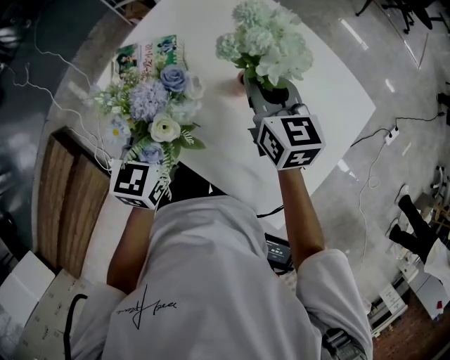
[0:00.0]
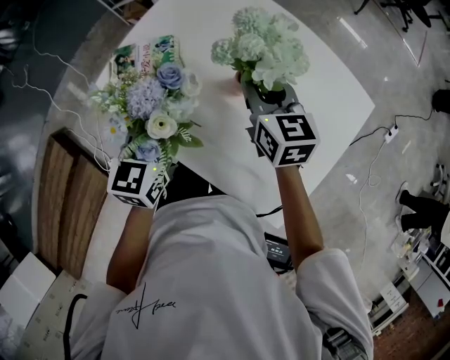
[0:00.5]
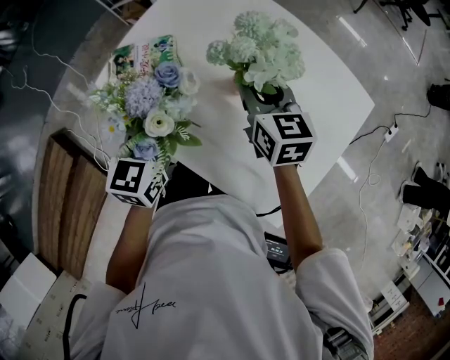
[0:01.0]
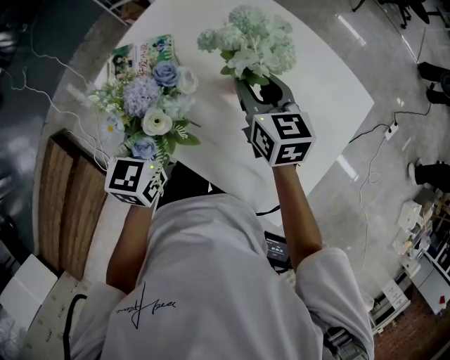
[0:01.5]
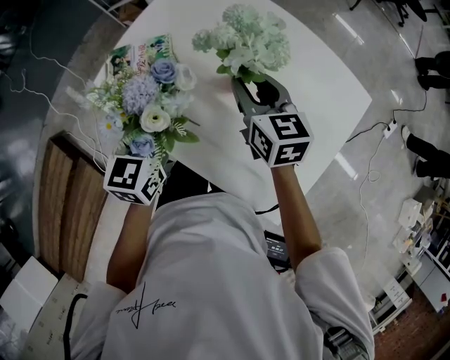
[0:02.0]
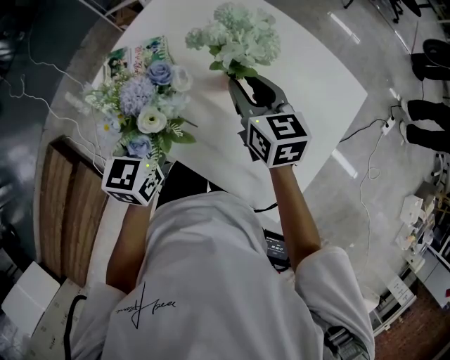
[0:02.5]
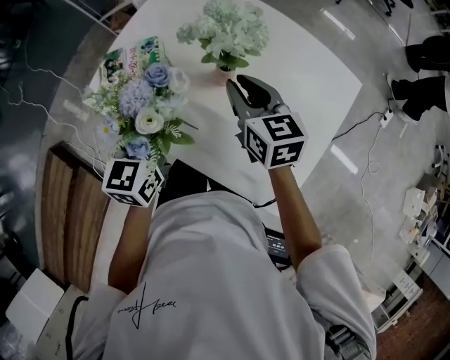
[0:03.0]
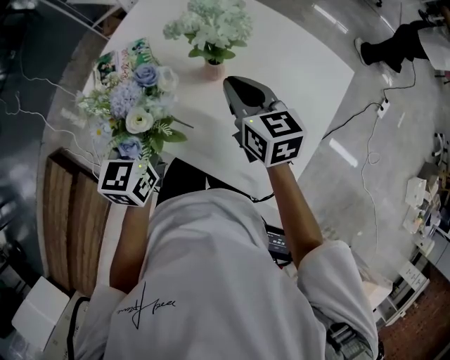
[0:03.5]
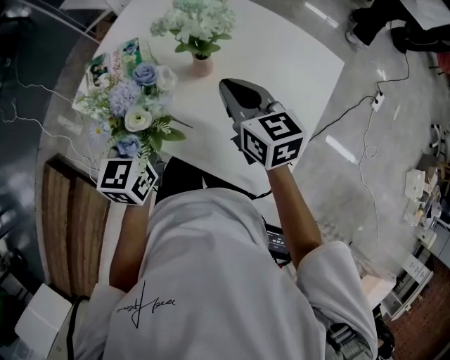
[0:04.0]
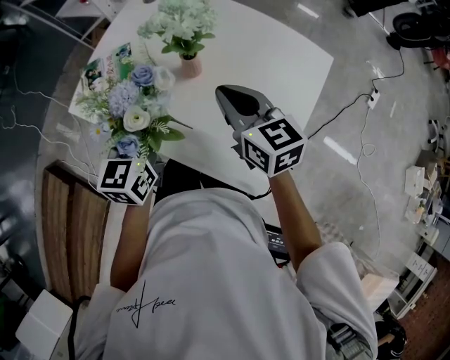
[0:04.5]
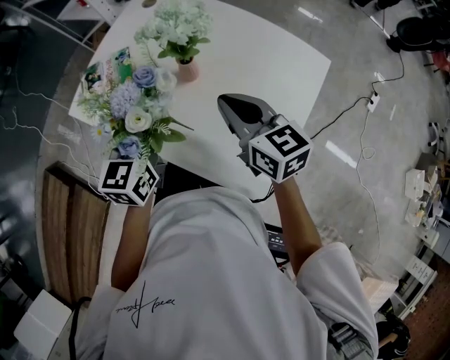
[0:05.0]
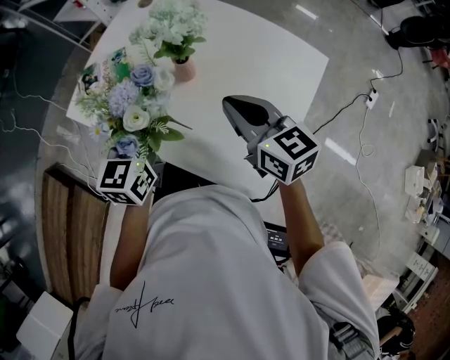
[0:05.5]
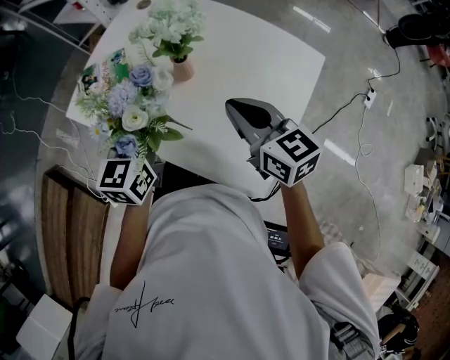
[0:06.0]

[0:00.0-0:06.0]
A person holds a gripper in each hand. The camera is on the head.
0:00.0 to 0:02.0: The grippers stay close to where they were, moving slightly.
0:02.0 to 0:04.0: The right gripper goes roughly 10 cm backward, and closes its fingers, while the left gripper heads backward, covering roughly 5 cm.
0:04.0 to 0:06.0: The right gripper moves backward, approximately 5 cm.

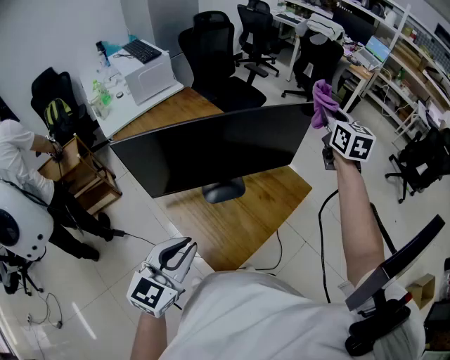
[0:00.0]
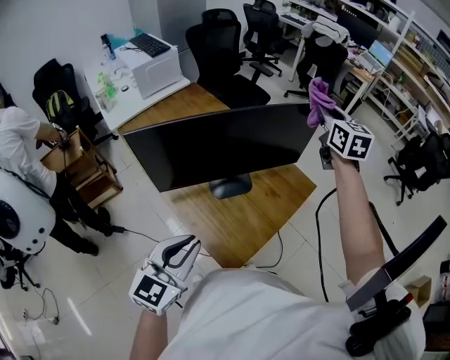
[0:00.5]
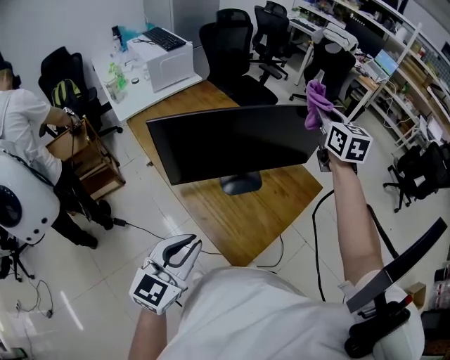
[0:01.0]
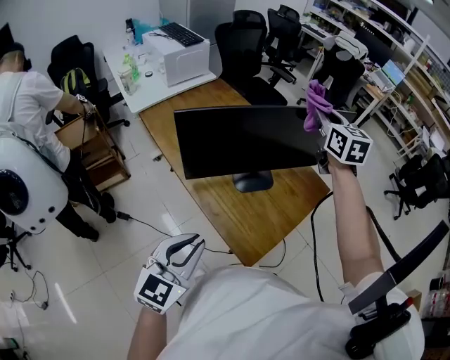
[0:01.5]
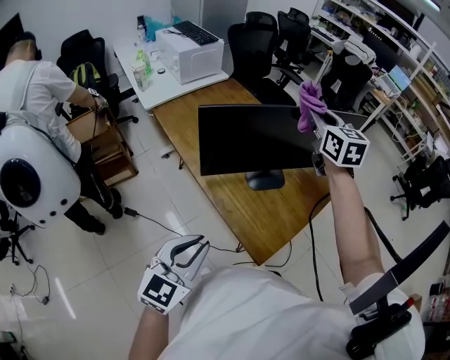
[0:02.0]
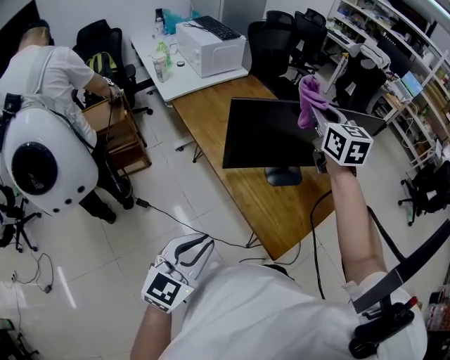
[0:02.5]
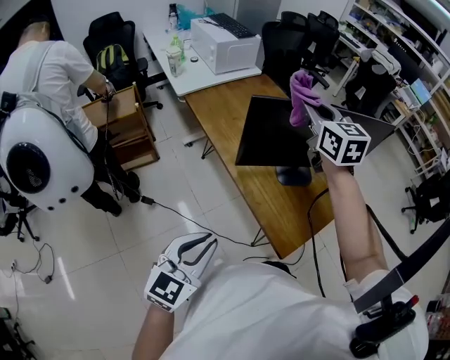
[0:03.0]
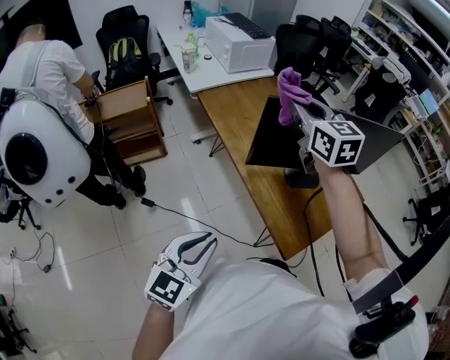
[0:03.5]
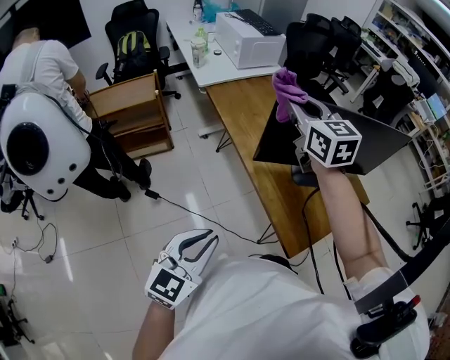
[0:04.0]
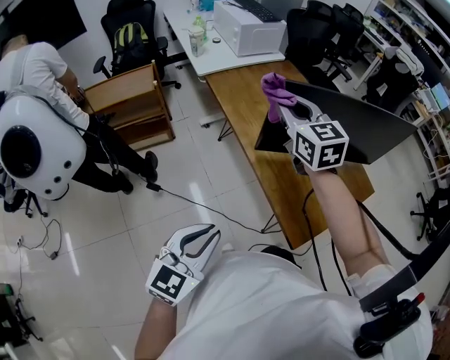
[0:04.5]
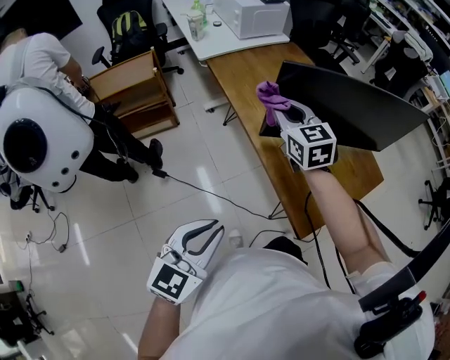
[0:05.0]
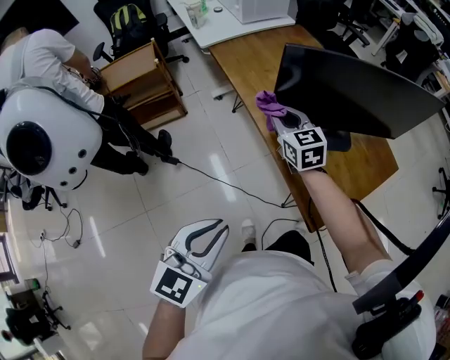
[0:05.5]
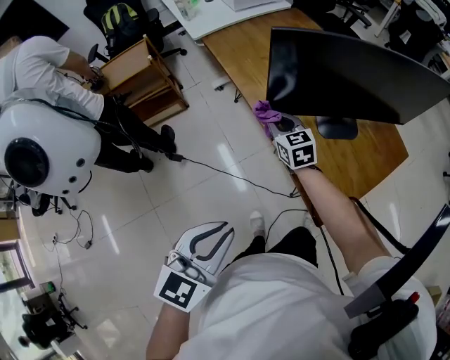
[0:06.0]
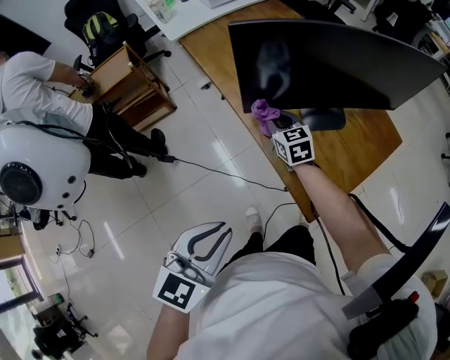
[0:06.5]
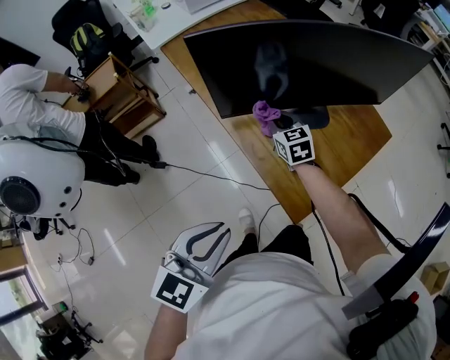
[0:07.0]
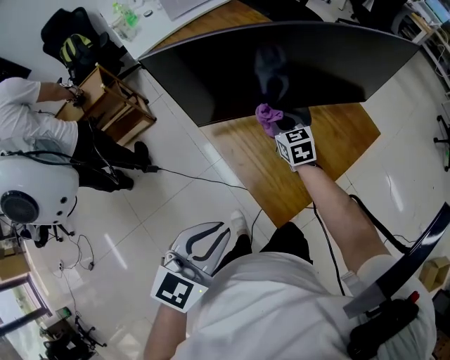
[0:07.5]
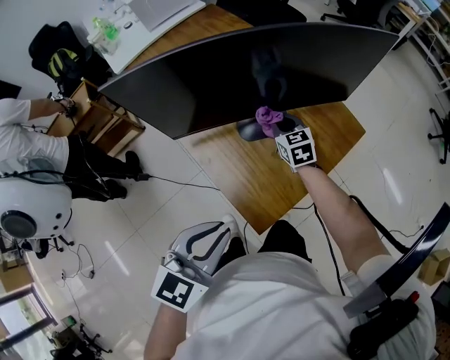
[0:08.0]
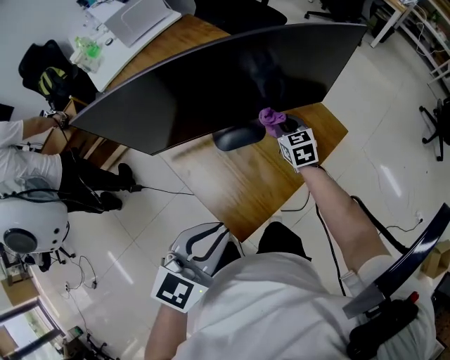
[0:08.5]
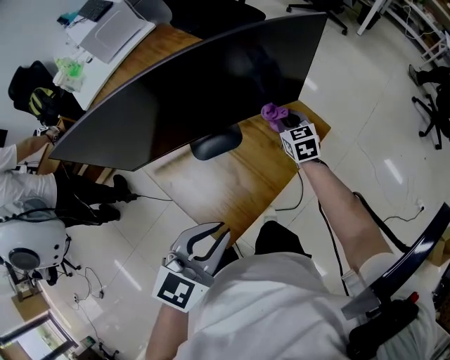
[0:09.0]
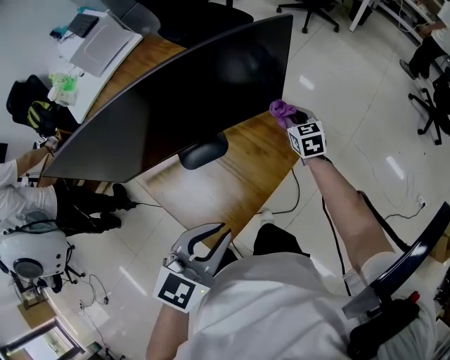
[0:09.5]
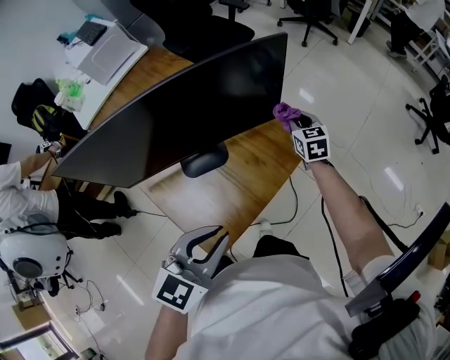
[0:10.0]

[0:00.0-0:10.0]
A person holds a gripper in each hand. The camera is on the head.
0:00.0 to 0:02.0: The left gripper goes some 15 cm to the left and backward, while the right gripper heads to the left and backward, covering about 30 cm.
0:02.0 to 0:04.0: The left gripper travels to the left and backward by about 10 cm. Meanwhile the right gripper shifts approximately 25 cm to the left, and swivels roughly 20 degrees.
0:04.0 to 0:06.0: The right gripper goes some 35 cm downward, and turns by about 20 degrees.
0:06.0 to 0:08.0: The right gripper shifts about 25 cm to the right, while the left gripper shifts some 20 cm to the right and forward.
0:08.0 to 0:10.0: The right gripper moves to the right and forward, some 30 cm, while the left gripper goes about 15 cm to the right and forward.

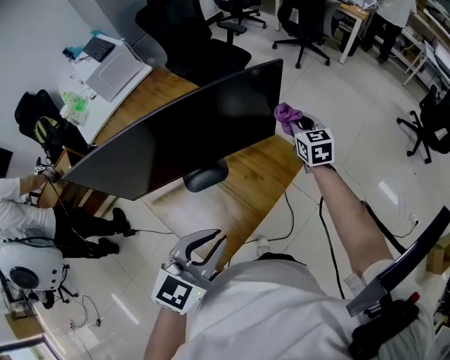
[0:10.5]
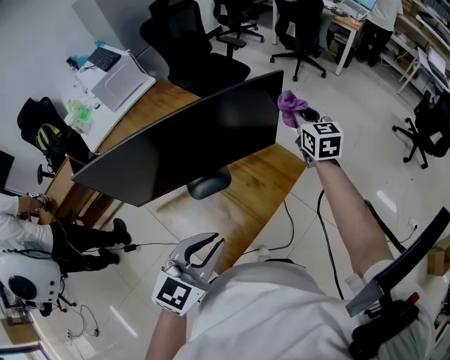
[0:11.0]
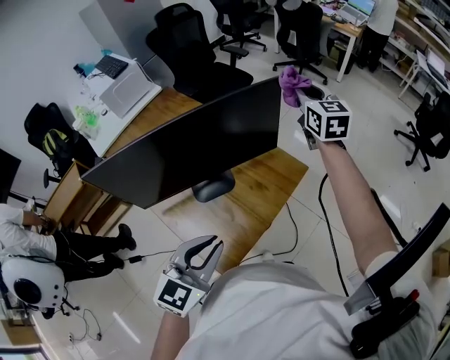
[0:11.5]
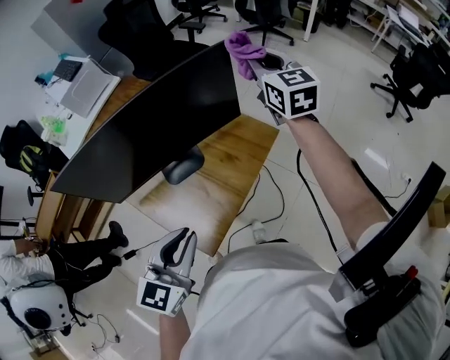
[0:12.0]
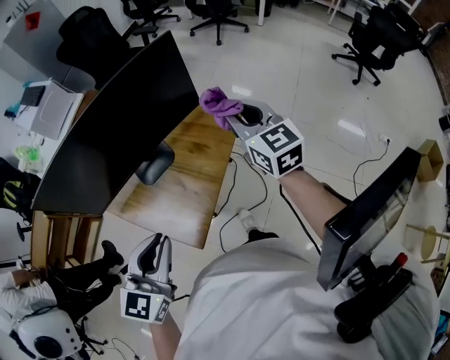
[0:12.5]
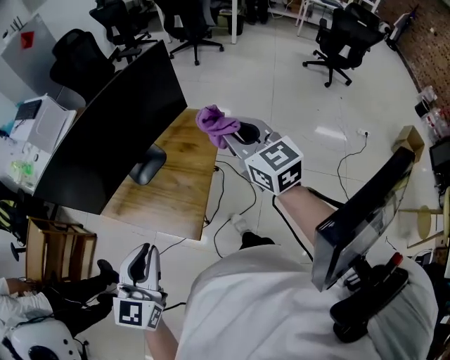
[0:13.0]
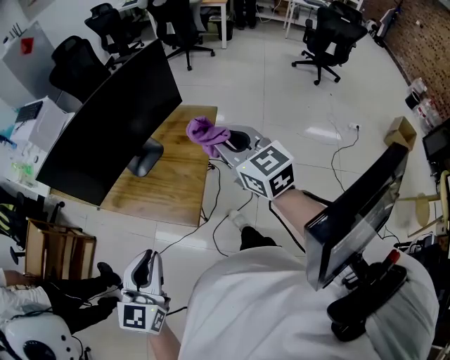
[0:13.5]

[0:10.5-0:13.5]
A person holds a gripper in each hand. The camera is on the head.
0:10.5 to 0:12.0: The right gripper travels upward by about 20 cm.
0:12.0 to 0:13.5: The left gripper shifts some 20 cm backward and to the left. The right gripper is displaced backward by approximately 35 cm.

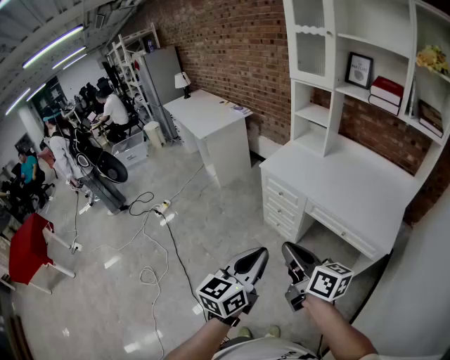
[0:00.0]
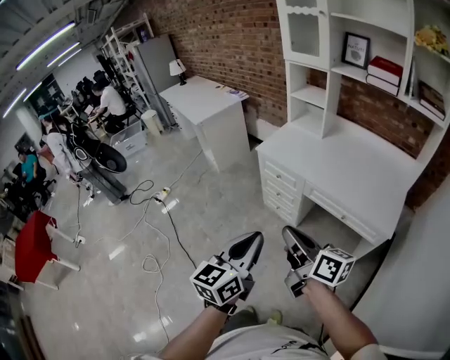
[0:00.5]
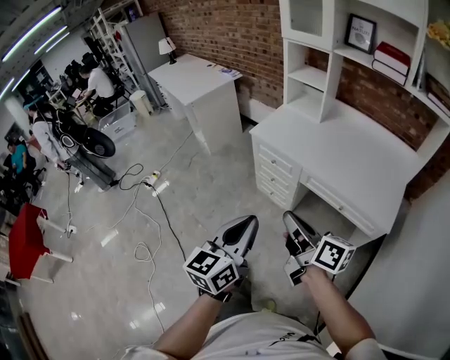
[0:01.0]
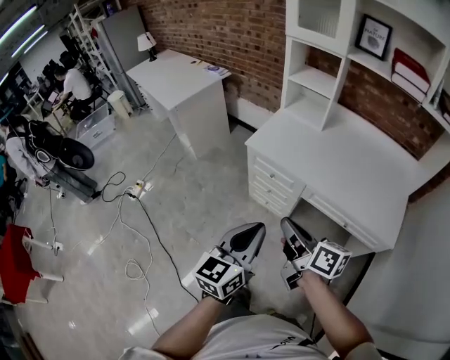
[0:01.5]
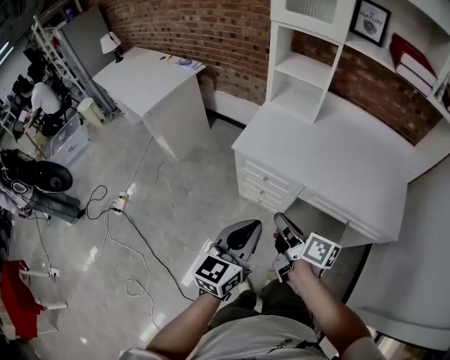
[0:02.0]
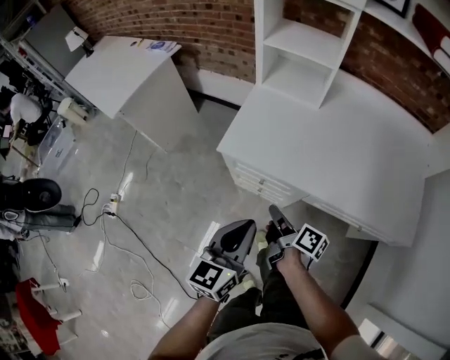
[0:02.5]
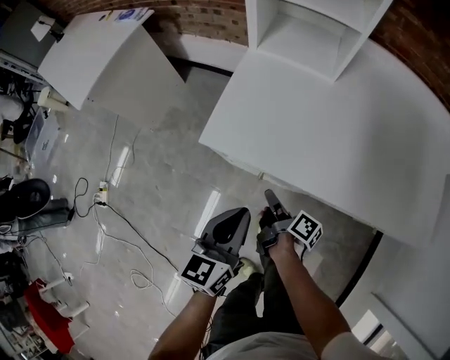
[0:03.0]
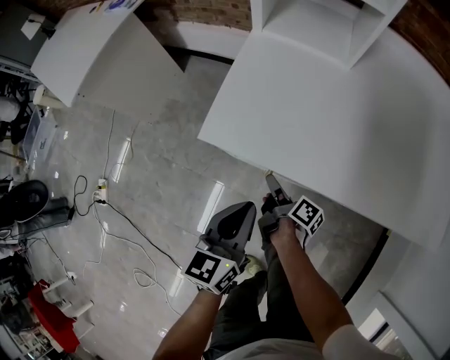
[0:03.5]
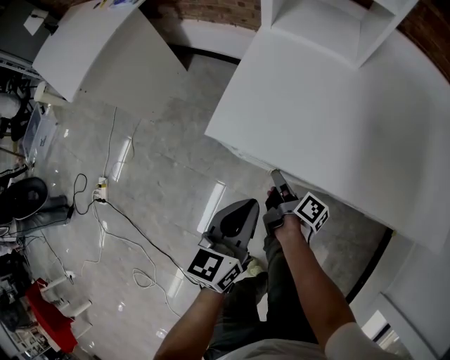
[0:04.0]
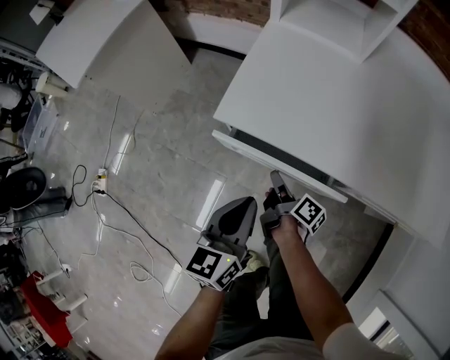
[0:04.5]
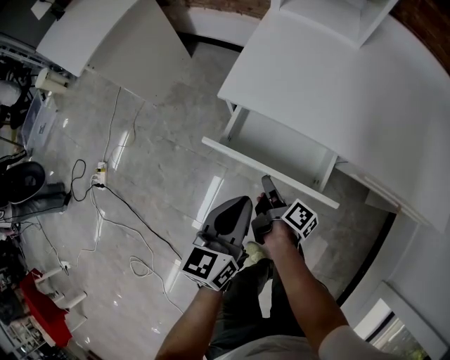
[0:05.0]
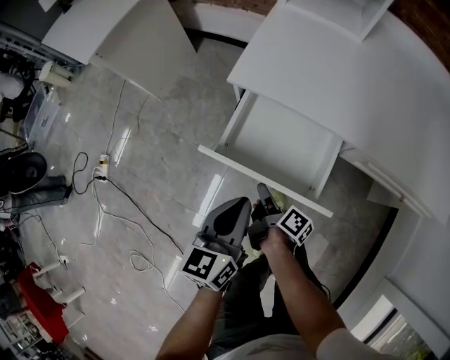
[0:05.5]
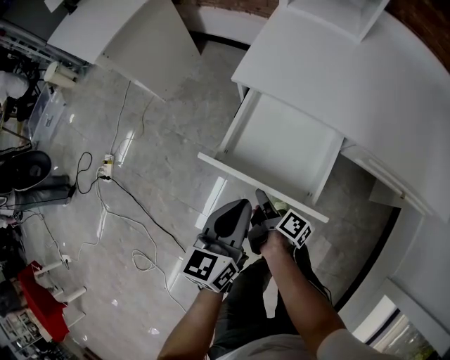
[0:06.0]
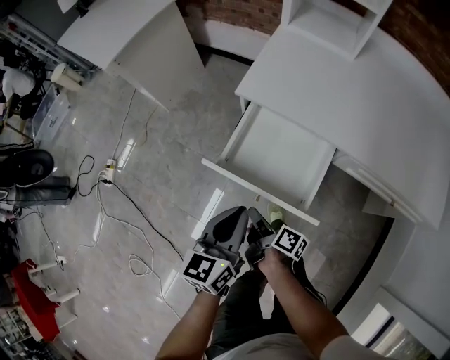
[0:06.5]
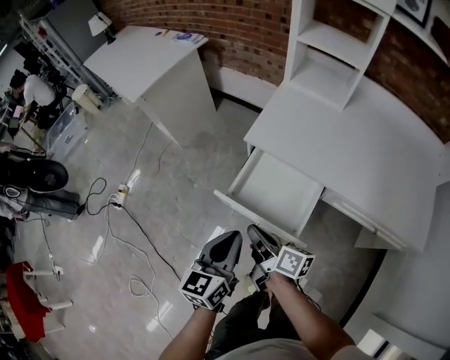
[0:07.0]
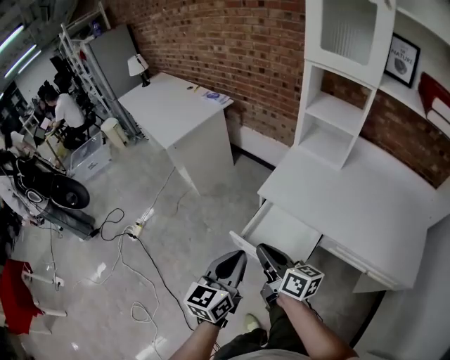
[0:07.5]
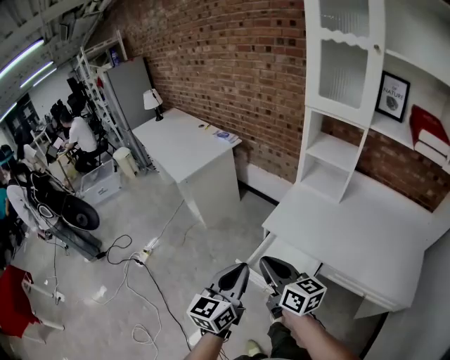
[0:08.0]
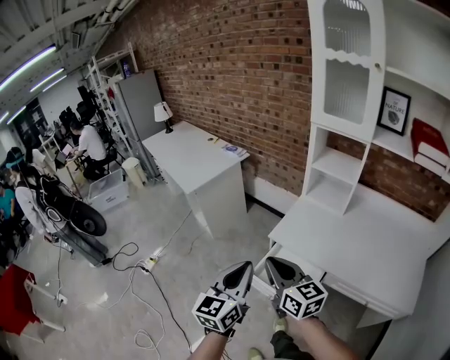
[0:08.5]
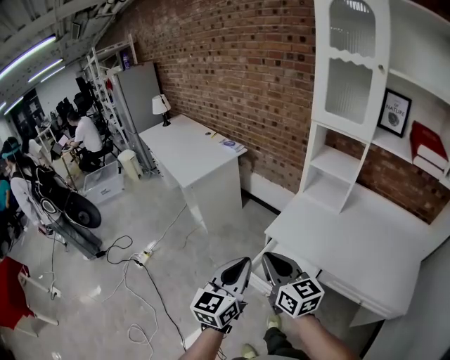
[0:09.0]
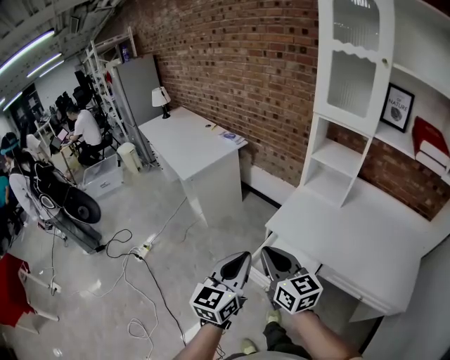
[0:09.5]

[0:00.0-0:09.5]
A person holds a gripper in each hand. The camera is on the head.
0:00.0 to 0:02.0: The left gripper travels forward by roughly 35 cm. The right gripper travels forward and downward by roughly 35 cm, and rotates some 30 degrees.
0:02.0 to 0:04.0: Both grippers travel together downward and forward, roughly 40 cm. The right gripper changes its angle by approximately 30 degrees.
0:04.0 to 0:05.5: The two grippers go roughly 20 cm backward and to the left.
0:05.5 to 0:07.5: The left gripper is displaced upward by about 25 cm. Meanwhile the right gripper shifts some 40 cm upward, and rotates around the line of its fingers by roughly 40 degrees, counterclockwise from behind.
0:07.5 to 0:09.5: Both grippers move upward, roughly 15 cm. The right gripper swivels roughly 30 degrees.
